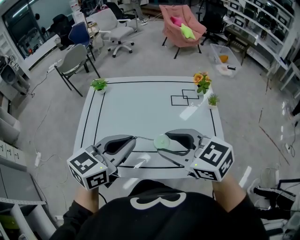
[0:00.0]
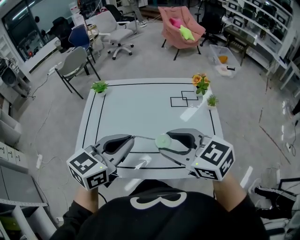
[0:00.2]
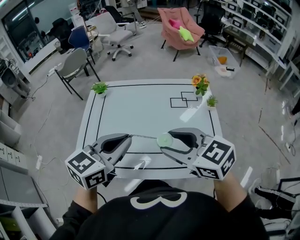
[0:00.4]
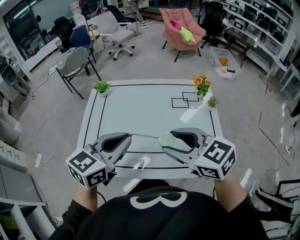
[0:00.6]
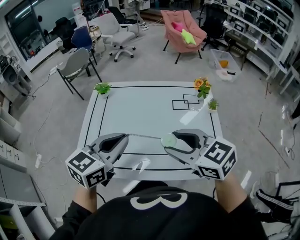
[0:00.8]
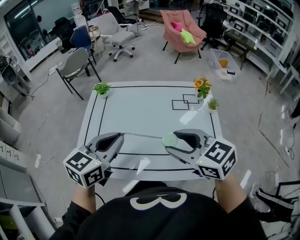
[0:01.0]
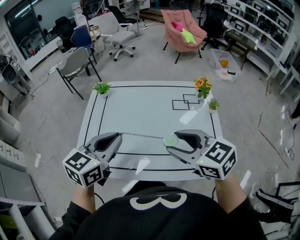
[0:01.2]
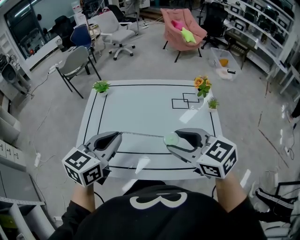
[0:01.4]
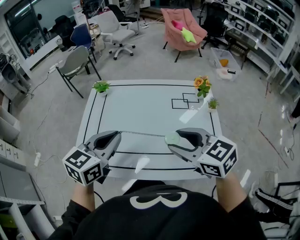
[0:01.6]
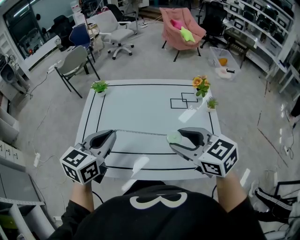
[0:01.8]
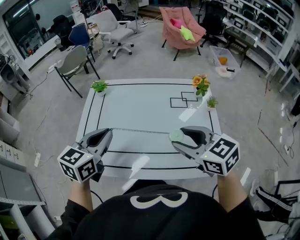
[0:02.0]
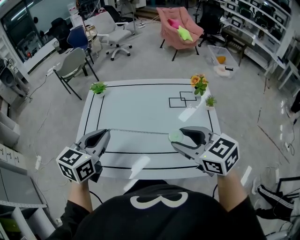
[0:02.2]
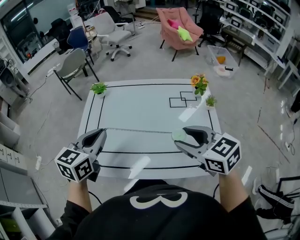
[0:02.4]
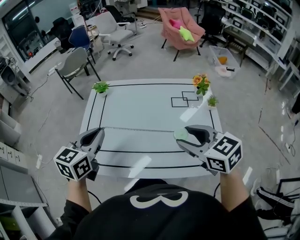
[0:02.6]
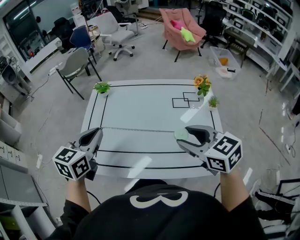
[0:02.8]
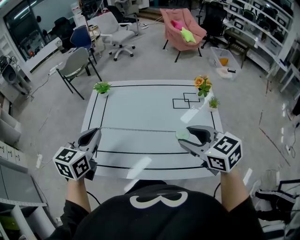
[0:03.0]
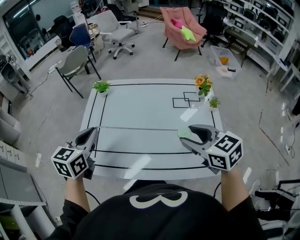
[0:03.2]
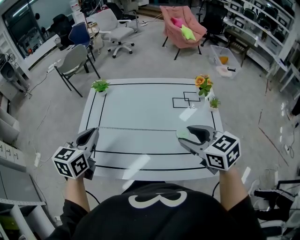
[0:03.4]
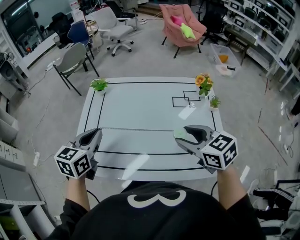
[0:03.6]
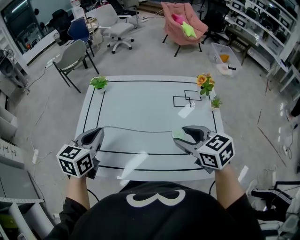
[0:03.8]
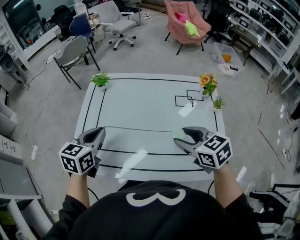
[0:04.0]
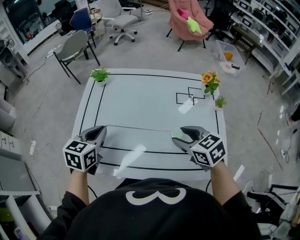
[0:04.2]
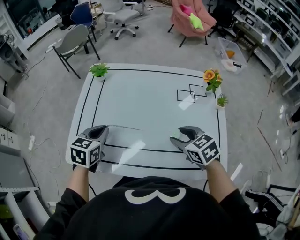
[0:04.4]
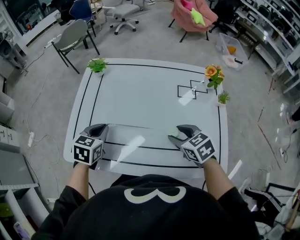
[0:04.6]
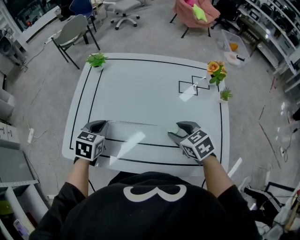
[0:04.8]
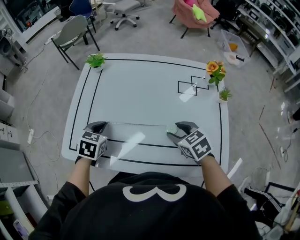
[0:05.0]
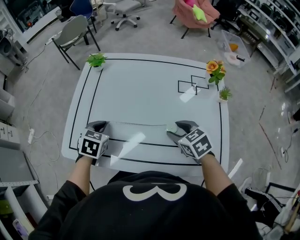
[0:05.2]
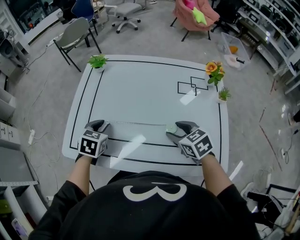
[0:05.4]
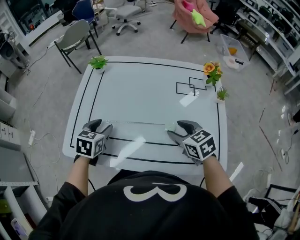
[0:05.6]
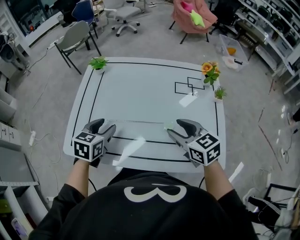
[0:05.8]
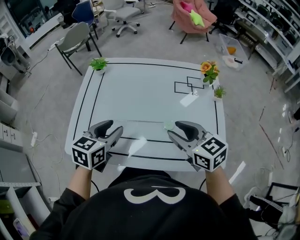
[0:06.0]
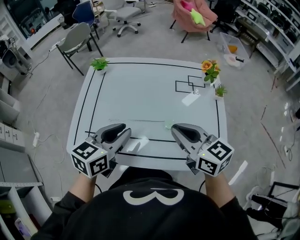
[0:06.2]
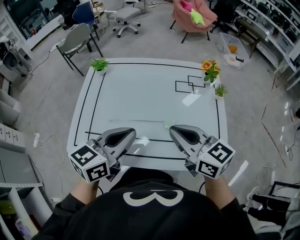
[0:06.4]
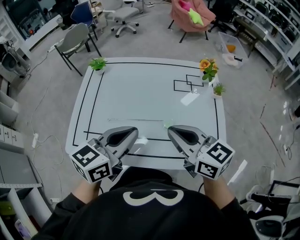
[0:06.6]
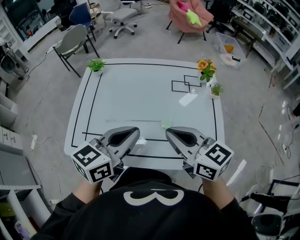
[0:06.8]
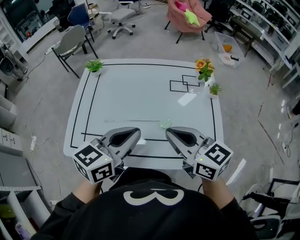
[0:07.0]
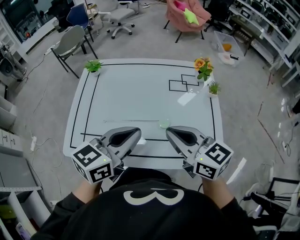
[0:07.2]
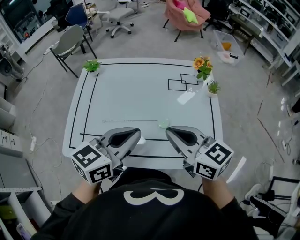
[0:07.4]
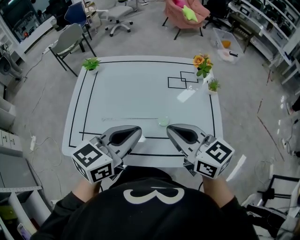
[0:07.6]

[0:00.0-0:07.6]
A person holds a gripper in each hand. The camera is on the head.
0:00.0 to 0:01.6: The left gripper moves to the left, roughly 5 cm.
0:01.6 to 0:03.0: The left gripper is displaced to the left by approximately 10 cm.
0:03.0 to 0:04.6: The two grippers go about 15 cm downward. The left gripper swivels approximately 20 degrees.
0:04.6 to 0:06.0: The left gripper travels upward, backward and to the right by some 10 cm, and opens, while the right gripper goes about 10 cm upward, and turns by about 20 degrees.
0:06.0 to 0:07.6: The right gripper heads upward, covering some 5 cm, and closes. The left gripper moves to the right and upward, about 15 cm, swivels some 20 degrees, and closes.

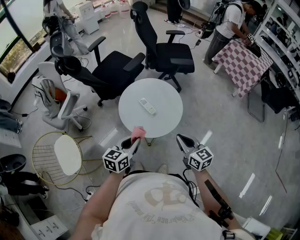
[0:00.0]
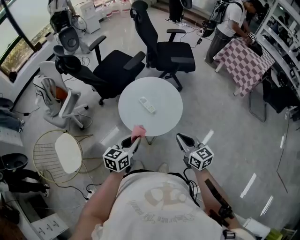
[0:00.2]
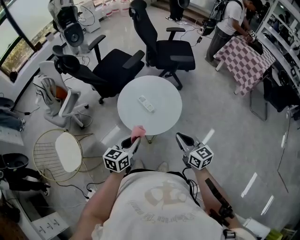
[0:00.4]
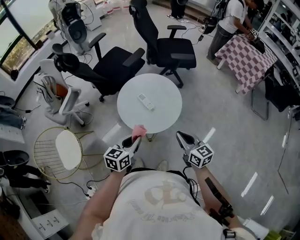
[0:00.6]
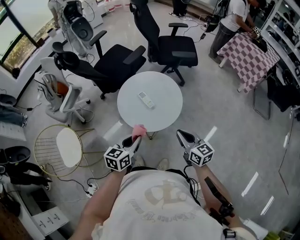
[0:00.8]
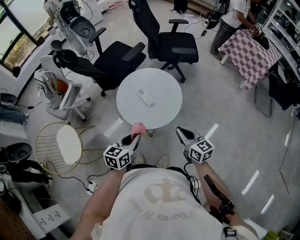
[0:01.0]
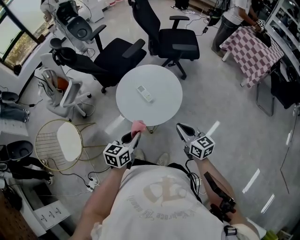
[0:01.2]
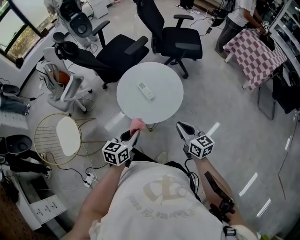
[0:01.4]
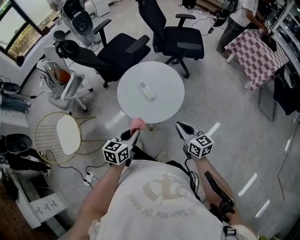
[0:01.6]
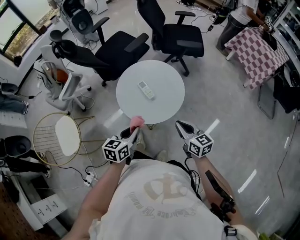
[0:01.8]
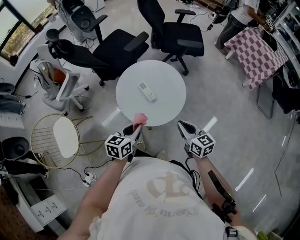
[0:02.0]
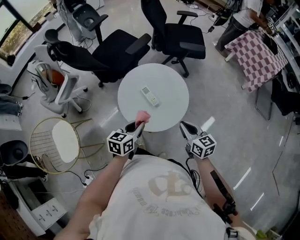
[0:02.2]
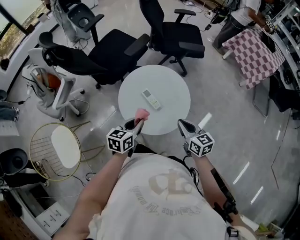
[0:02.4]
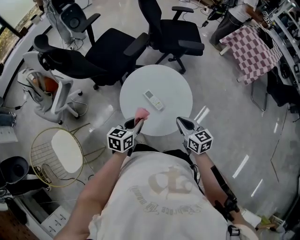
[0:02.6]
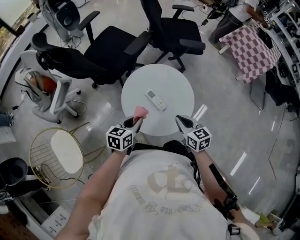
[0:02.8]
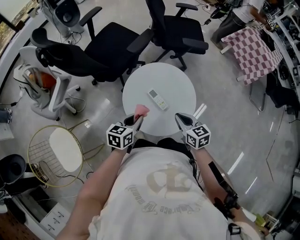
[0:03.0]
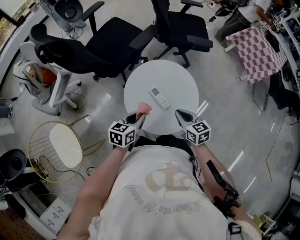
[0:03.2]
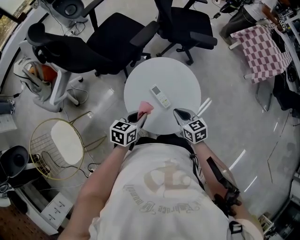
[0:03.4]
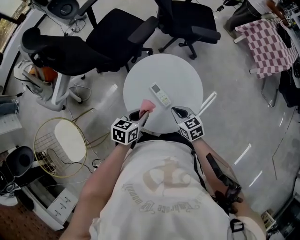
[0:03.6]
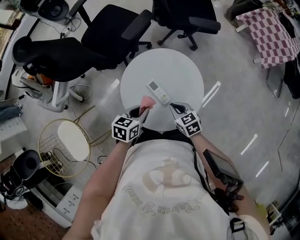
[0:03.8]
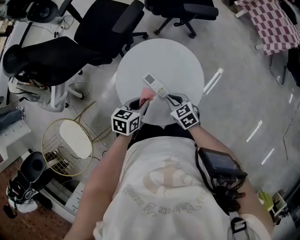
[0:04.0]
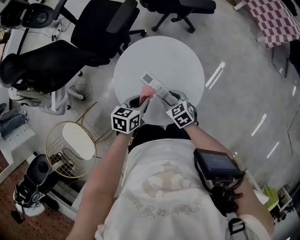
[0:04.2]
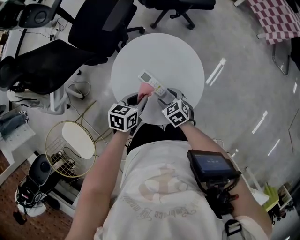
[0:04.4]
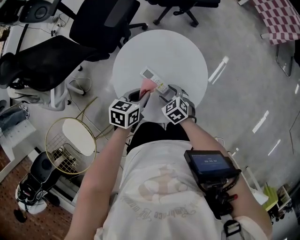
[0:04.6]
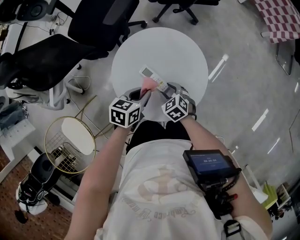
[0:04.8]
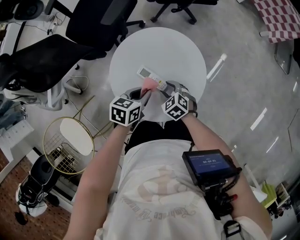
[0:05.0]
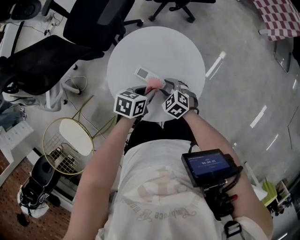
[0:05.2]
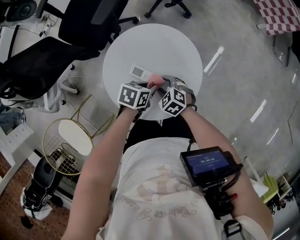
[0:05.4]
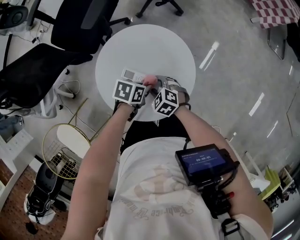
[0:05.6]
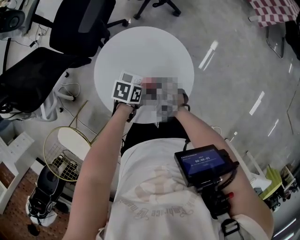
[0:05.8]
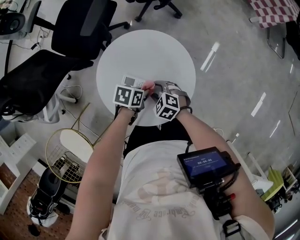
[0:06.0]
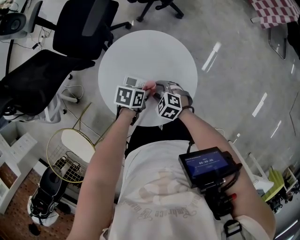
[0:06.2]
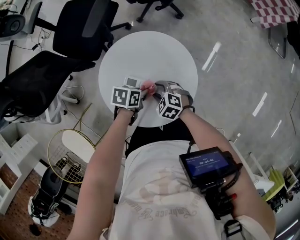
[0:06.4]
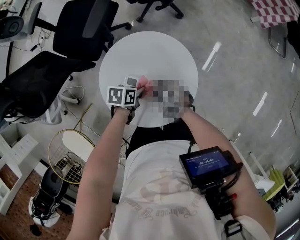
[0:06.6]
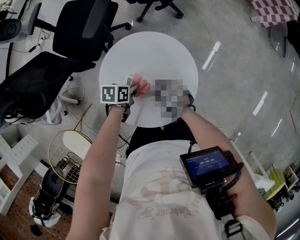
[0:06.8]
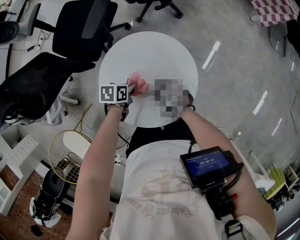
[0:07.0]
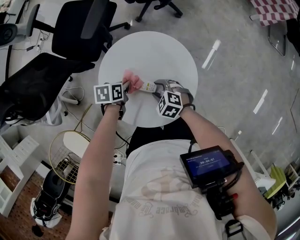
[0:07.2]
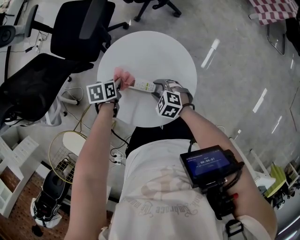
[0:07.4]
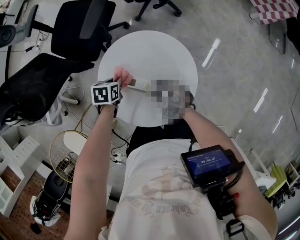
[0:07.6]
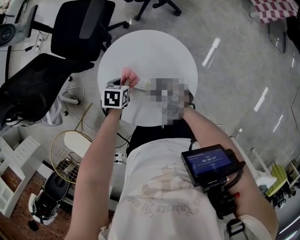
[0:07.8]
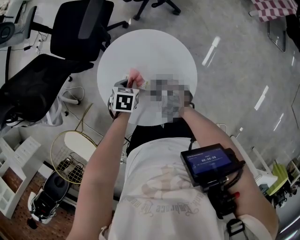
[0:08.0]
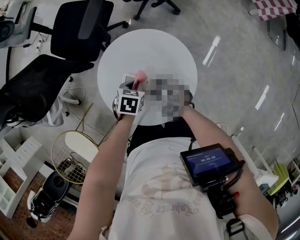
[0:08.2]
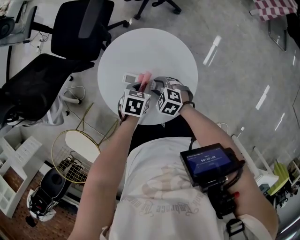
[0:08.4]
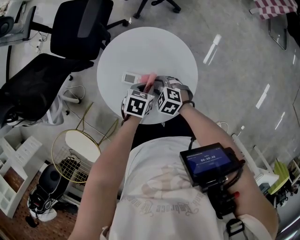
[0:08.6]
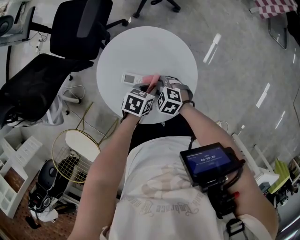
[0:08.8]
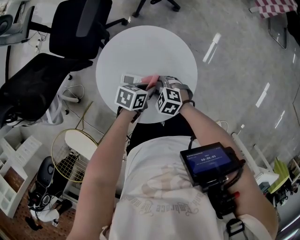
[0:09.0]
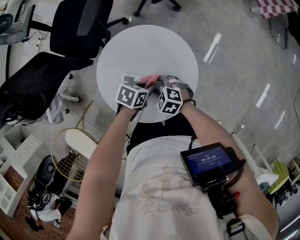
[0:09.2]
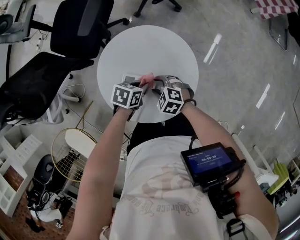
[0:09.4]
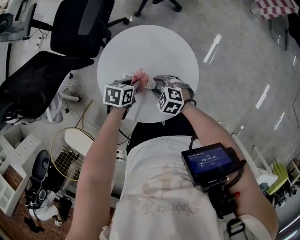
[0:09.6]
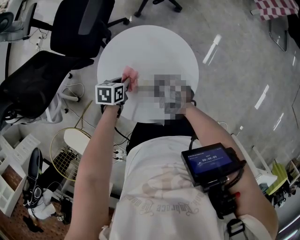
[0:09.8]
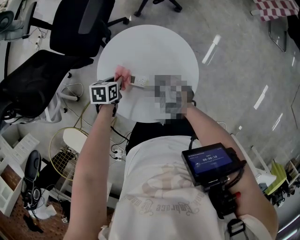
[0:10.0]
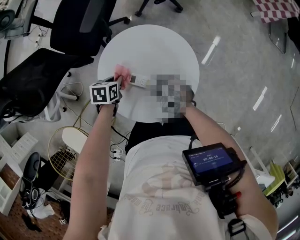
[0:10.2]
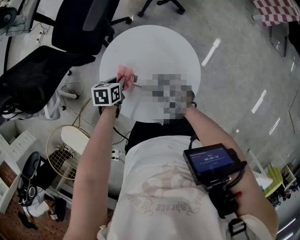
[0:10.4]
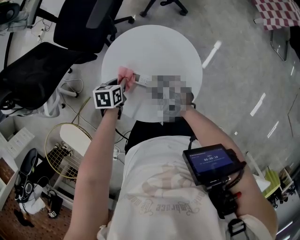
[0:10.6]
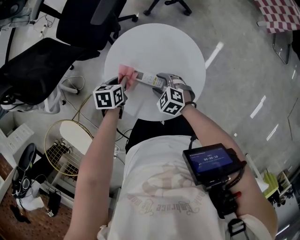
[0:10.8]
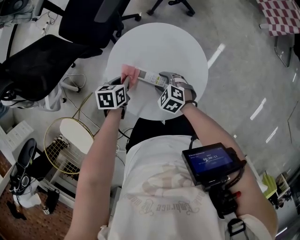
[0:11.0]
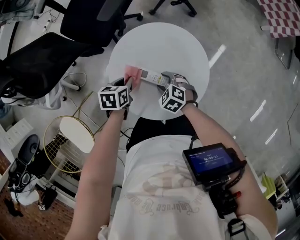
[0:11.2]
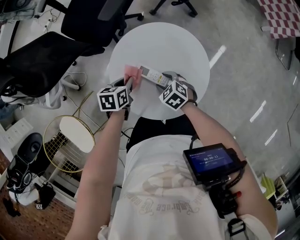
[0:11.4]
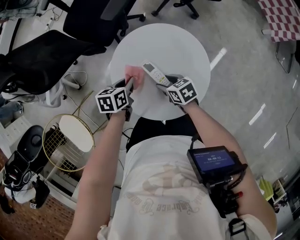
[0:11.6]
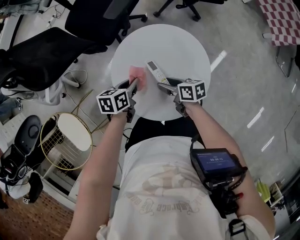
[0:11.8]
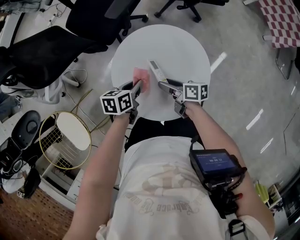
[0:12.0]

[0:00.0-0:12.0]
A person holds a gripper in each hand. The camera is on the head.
0:00.0 to 0:01.6: Both grippers travel together to the right, about 5 cm.
0:01.6 to 0:03.0: Both grippers travel together forward and to the left, roughly 20 cm.
0:03.0 to 0:04.4: The left gripper shifts roughly 15 cm downward, forward and to the right; the right gripper heads downward, covering approximately 20 cm, turns by some 20 degrees, and opens up.
0:04.4 to 0:06.0: The left gripper is displaced downward by approximately 10 cm, and turns by about 30 degrees. The right gripper turns by some 20 degrees.
0:06.0 to 0:07.6: The left gripper changes place by approximately 15 cm, and changes its angle by roughly 20 degrees.
0:07.6 to 0:09.0: The left gripper moves about 20 cm, and changes its angle by some 30 degrees.
0:09.0 to 0:10.4: The left gripper shifts by some 15 cm, and rotates approximately 30 degrees.
0:10.4 to 0:12.0: The right gripper rotates around the line of its fingers by about 70 degrees, clockwise from behind; the left gripper changes place by about 5 cm, and rotates some 20 degrees.

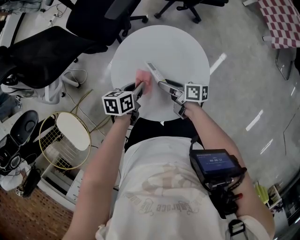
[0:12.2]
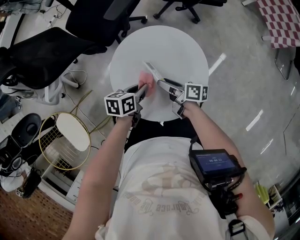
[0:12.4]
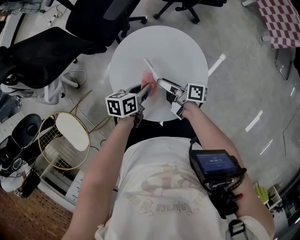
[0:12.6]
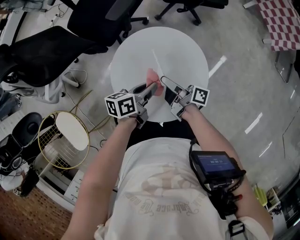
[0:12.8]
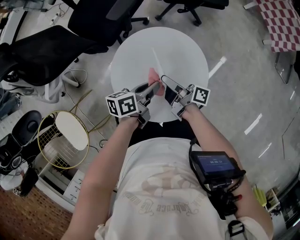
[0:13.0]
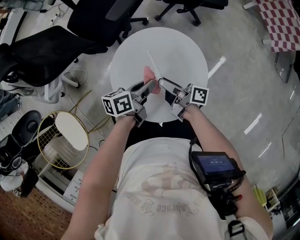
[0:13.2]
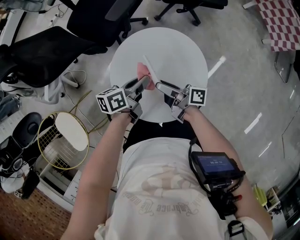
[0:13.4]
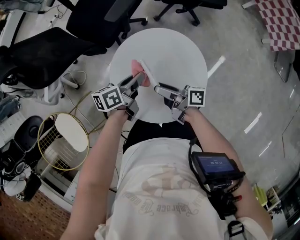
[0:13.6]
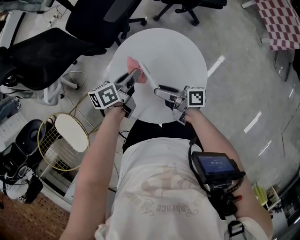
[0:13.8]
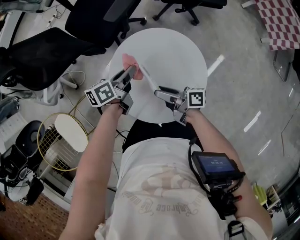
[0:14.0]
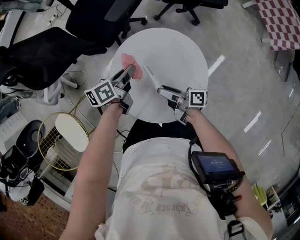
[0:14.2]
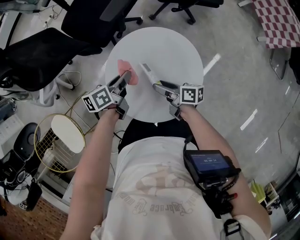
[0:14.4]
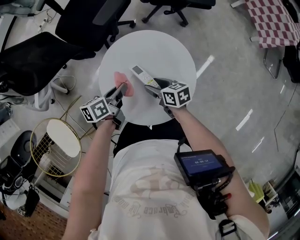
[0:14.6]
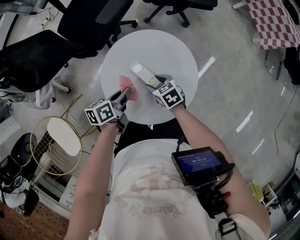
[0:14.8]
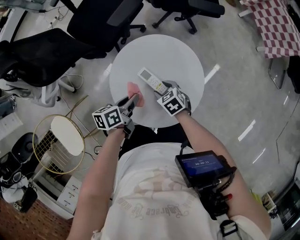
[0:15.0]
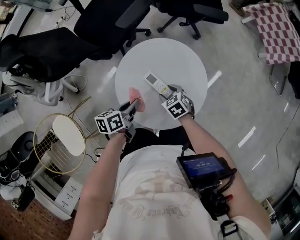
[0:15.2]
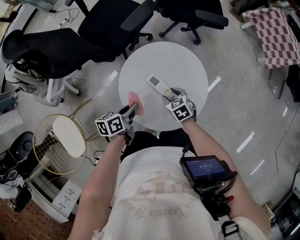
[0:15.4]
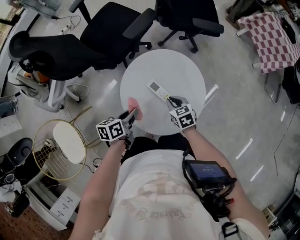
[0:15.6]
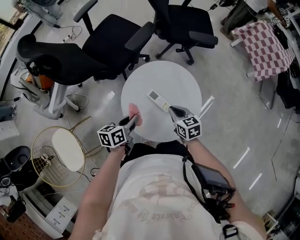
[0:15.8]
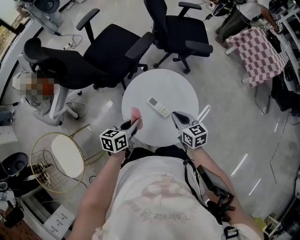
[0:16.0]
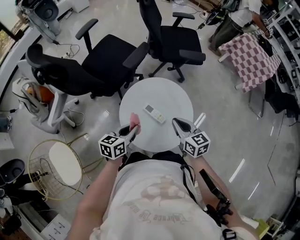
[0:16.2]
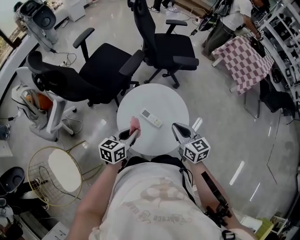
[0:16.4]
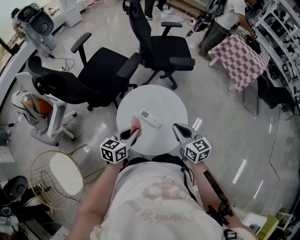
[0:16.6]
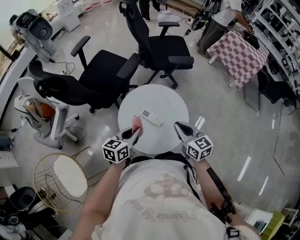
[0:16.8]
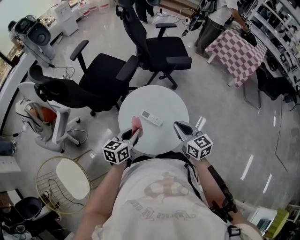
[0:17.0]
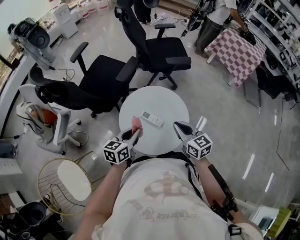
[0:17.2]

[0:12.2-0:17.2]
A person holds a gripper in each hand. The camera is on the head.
0:12.2 to 0:13.8: The right gripper moves upward, about 5 cm. The left gripper travels forward and upward by roughly 10 cm, and rotates roughly 20 degrees.
0:13.8 to 0:15.6: The left gripper travels backward and to the left by roughly 15 cm; the right gripper shifts about 5 cm downward, tilts its fingers roughly 50 degrees downward, and closes its fingers.
0:15.6 to 0:17.2: The left gripper is displaced upward by approximately 15 cm, and rotates about 30 degrees; the right gripper is displaced upward by about 20 cm, and tilts its fingers some 30 degrees upward.
